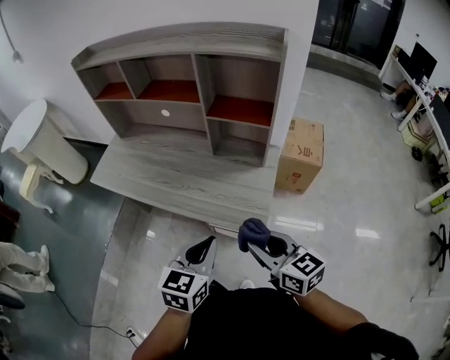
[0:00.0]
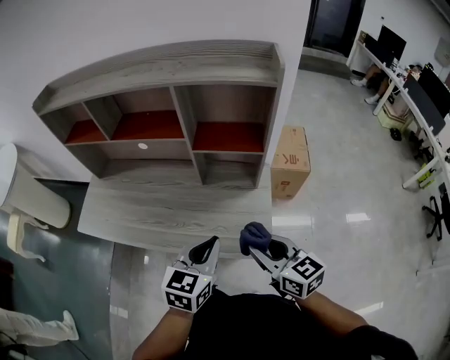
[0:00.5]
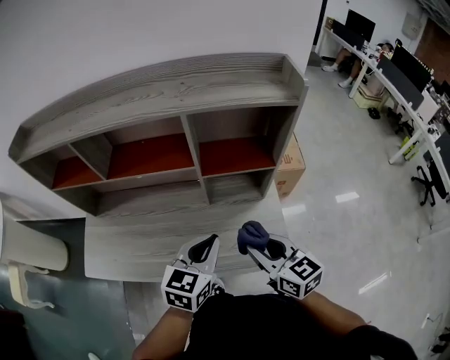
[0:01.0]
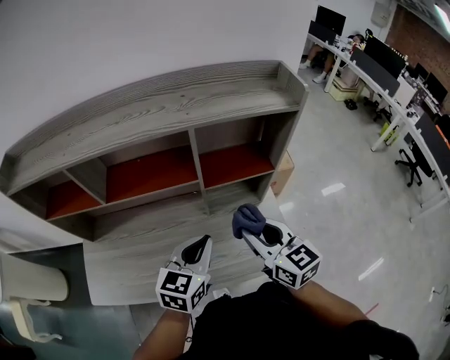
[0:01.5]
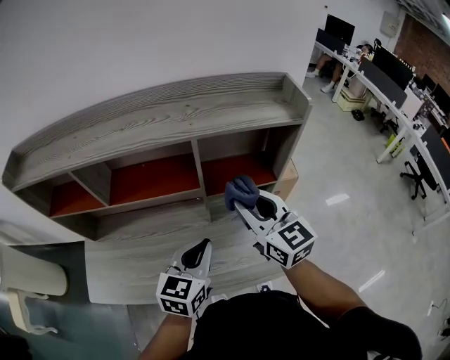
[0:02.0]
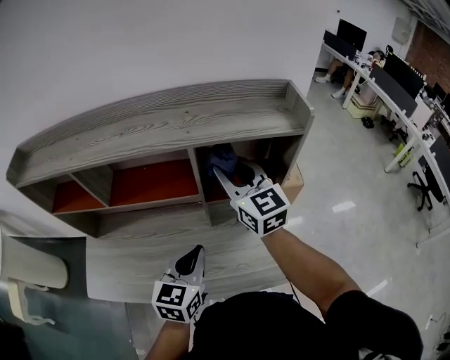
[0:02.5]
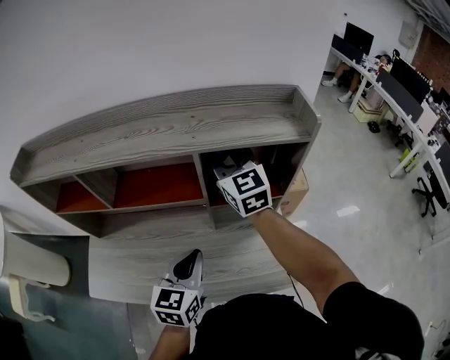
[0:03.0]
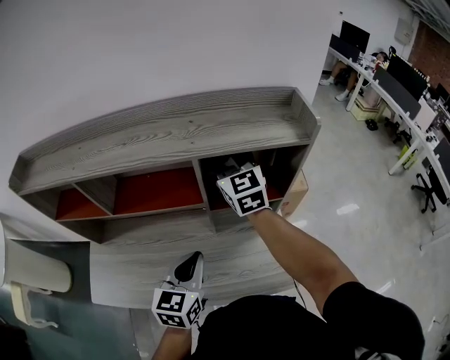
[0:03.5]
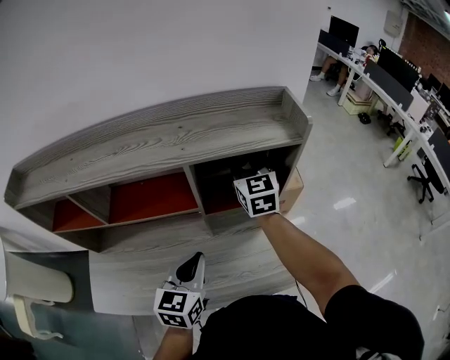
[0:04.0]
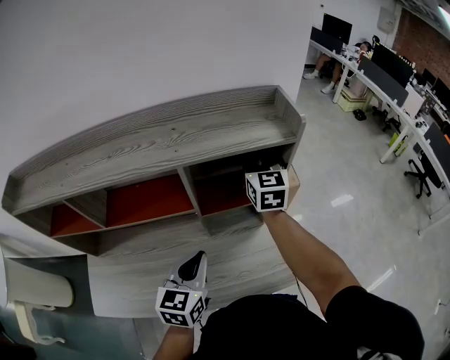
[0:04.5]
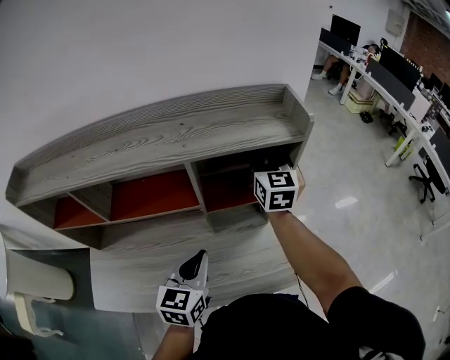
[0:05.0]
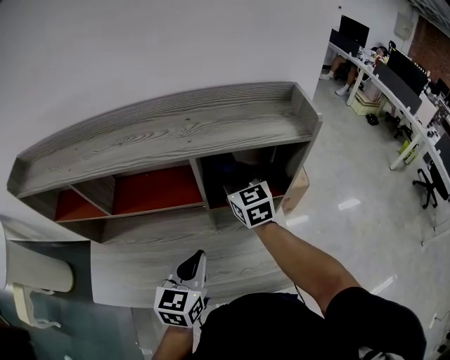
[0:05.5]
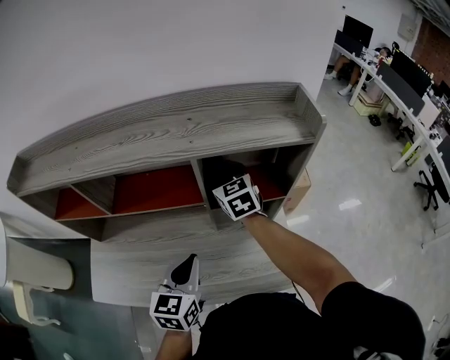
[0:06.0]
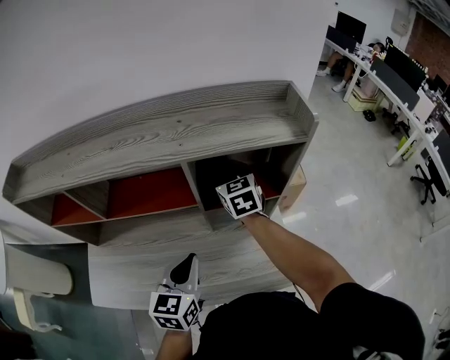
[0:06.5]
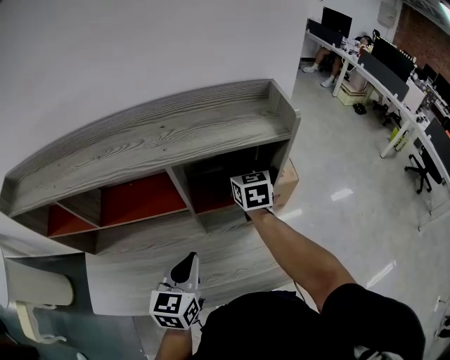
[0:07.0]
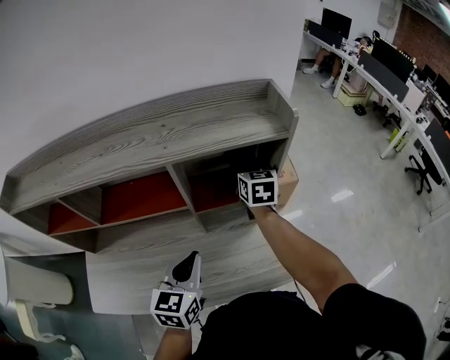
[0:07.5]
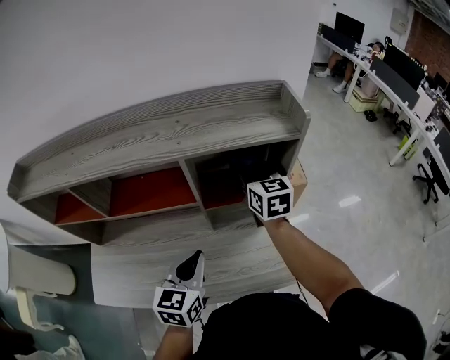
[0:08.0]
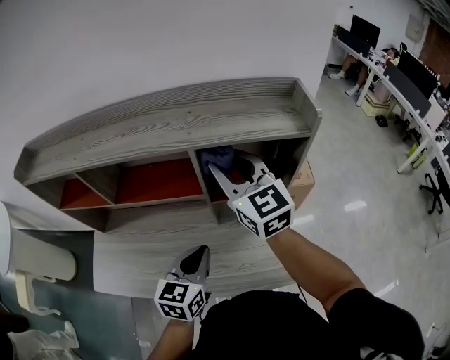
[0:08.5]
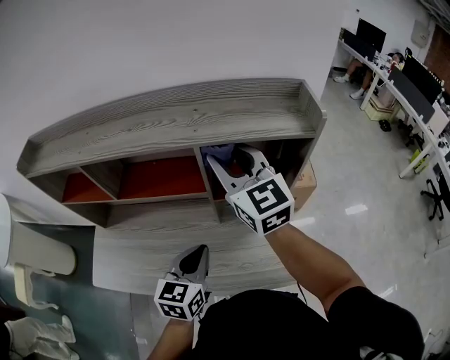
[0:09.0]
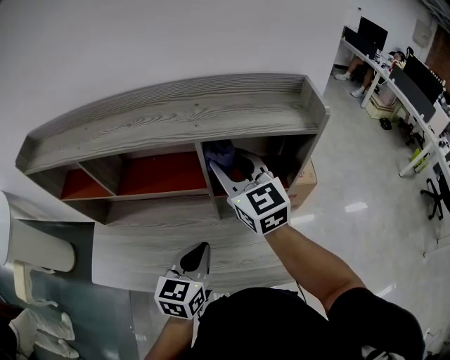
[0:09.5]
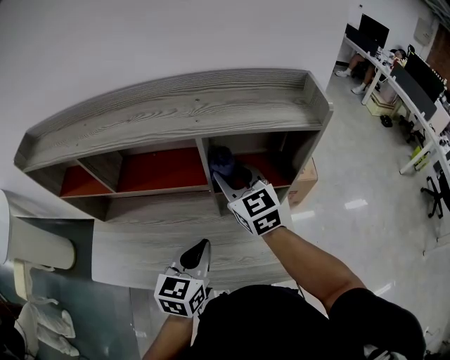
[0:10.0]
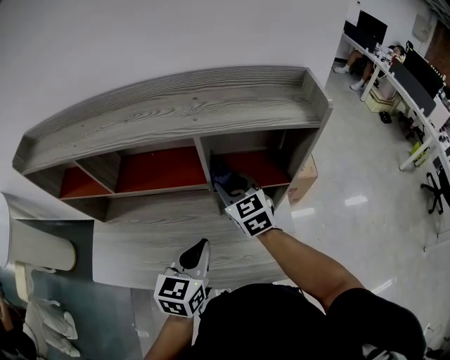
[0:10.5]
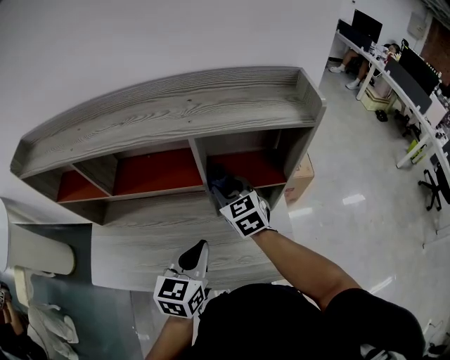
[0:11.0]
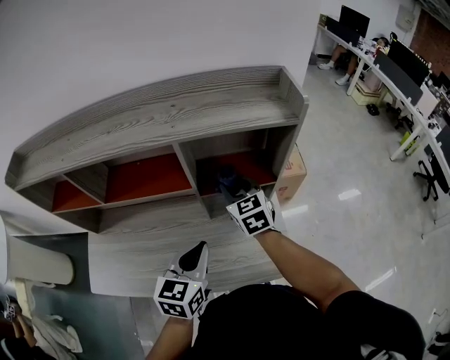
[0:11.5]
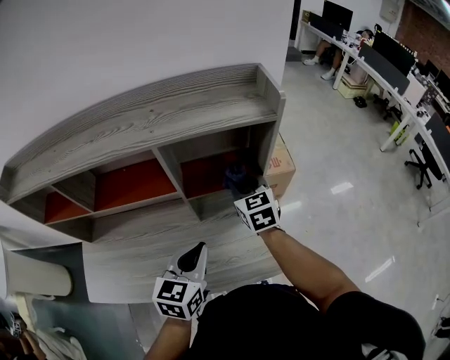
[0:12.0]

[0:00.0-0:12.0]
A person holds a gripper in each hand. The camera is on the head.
0:00.0 to 0:02.0: The left gripper ends up some 30 cm from where it was, and changes its angle by approximately 30 degrees; the right gripper changes place by approximately 35 cm, and changes its angle by about 40 degrees.
0:02.0 to 0:04.0: The right gripper moves forward, roughly 20 cm.
0:04.0 to 0:06.0: The right gripper shifts approximately 10 cm to the left and downward.
0:06.0 to 0:08.0: The right gripper shifts approximately 10 cm to the right.
0:08.0 to 0:10.0: The right gripper is displaced to the left and backward by some 10 cm, goes upward and returns, about 10 cm each way, and rotates approximately 20 degrees.
0:10.0 to 0:12.0: The left gripper goes roughly 5 cm to the right. The right gripper moves to the right and downward, roughly 15 cm, and turns by some 20 degrees.

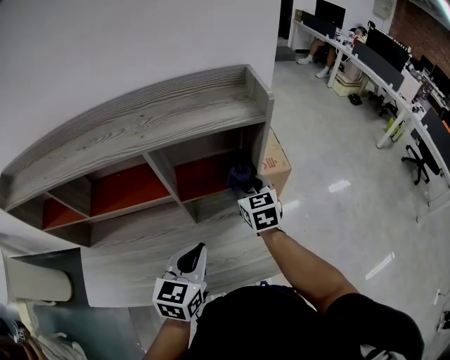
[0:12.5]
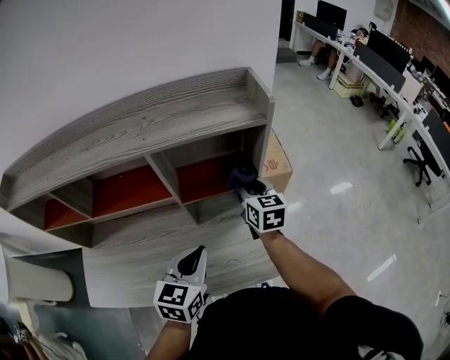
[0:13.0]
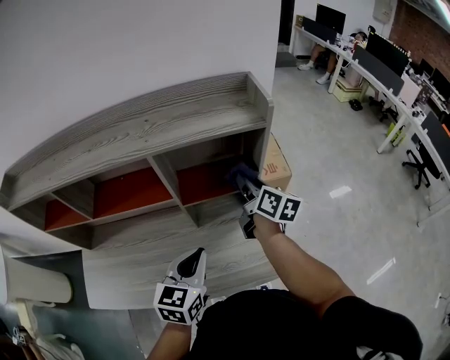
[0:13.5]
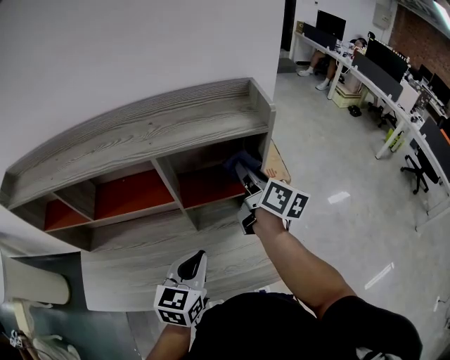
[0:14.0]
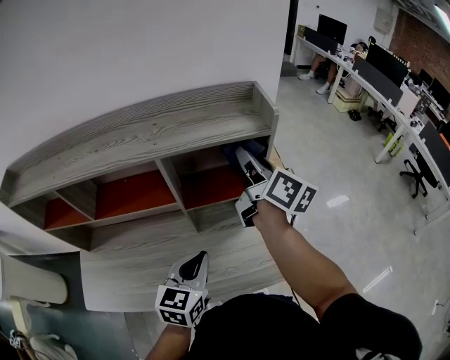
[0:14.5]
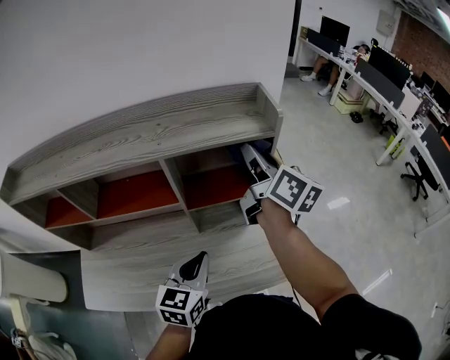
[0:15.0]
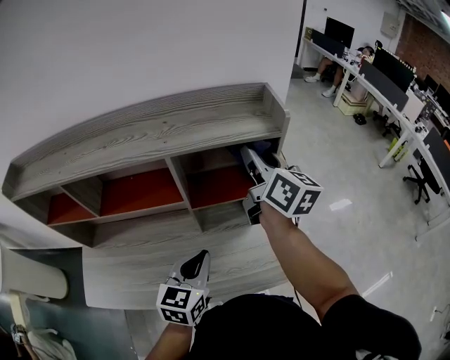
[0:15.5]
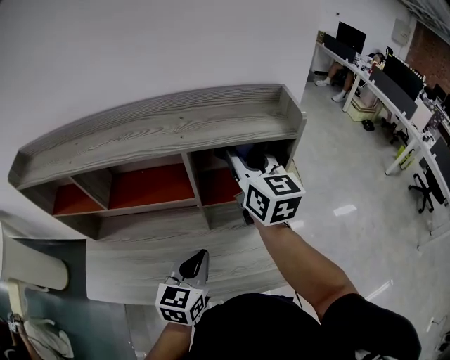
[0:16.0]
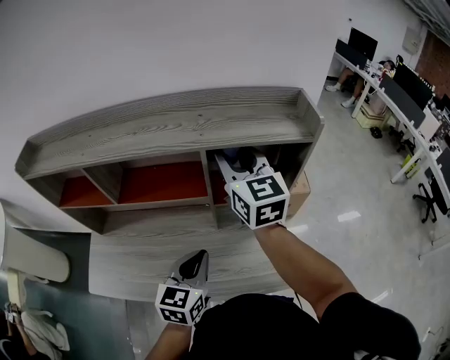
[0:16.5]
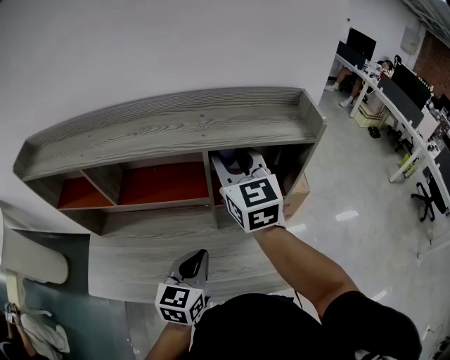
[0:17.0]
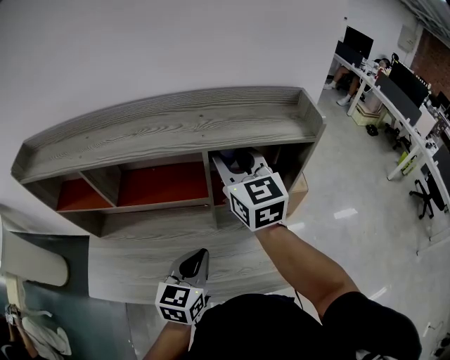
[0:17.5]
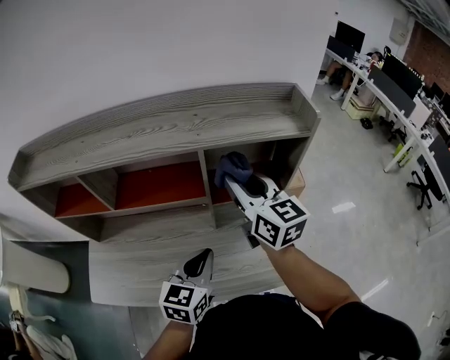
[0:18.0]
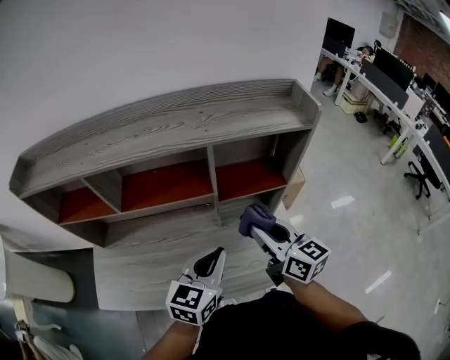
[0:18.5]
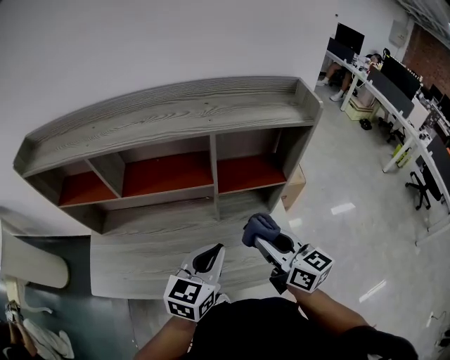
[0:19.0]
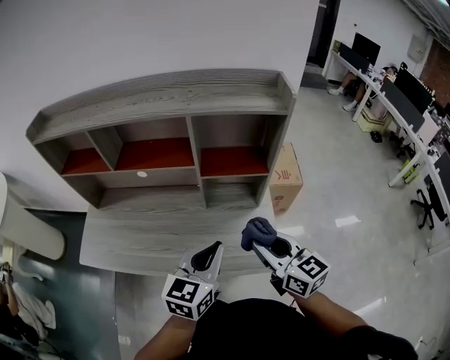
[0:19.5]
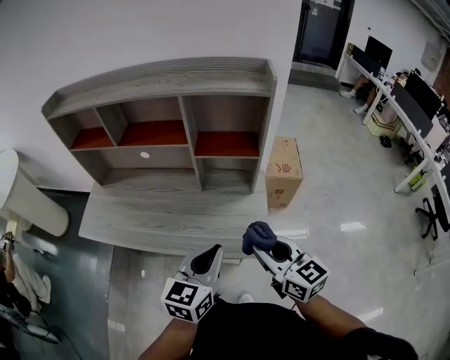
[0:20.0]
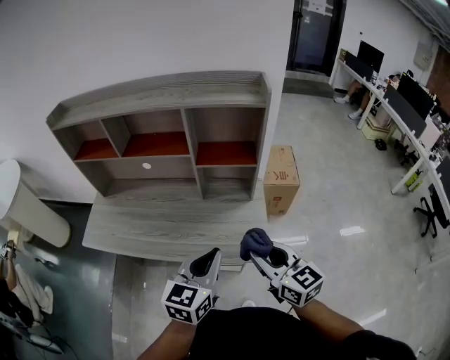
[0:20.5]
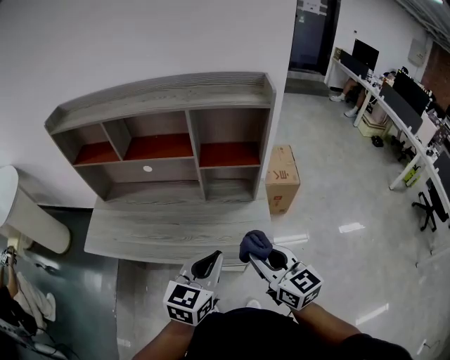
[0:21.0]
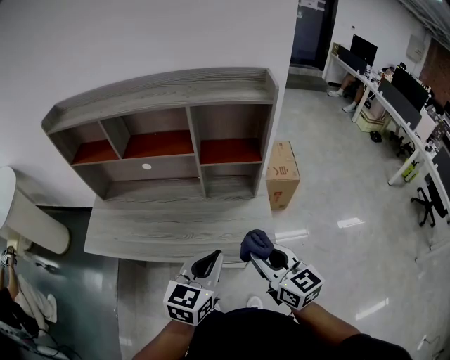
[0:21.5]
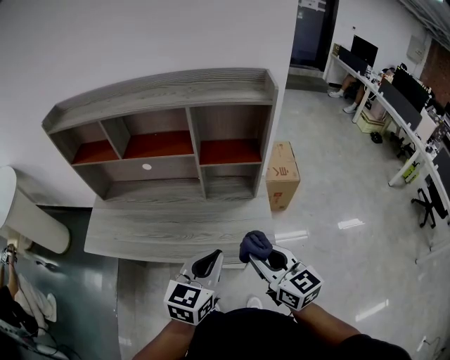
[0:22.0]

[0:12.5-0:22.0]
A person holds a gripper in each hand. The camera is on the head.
0:12.5 to 0:14.5: The right gripper goes about 20 cm upward, and rolls clockwise, seen from behind, by approximately 40 degrees.
0:14.5 to 0:16.5: The right gripper goes roughly 15 cm to the left, and twists about 40 degrees counterclockwise, seen from behind. Meanwhile the left gripper heads to the left, covering approximately 5 cm.
0:16.5 to 0:18.0: The right gripper ends up about 5 cm from where it was.
0:18.0 to 0:20.0: The two grippers go approximately 30 cm backward and to the right. The right gripper turns by some 20 degrees.
0:20.0 to 0:22.0: The right gripper shifts by some 5 cm.

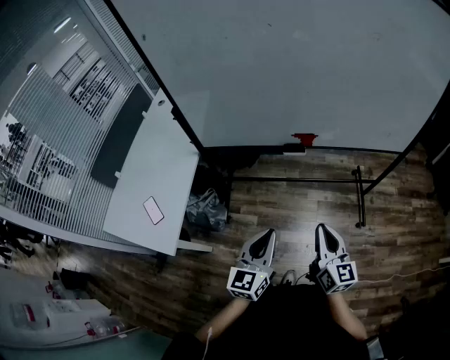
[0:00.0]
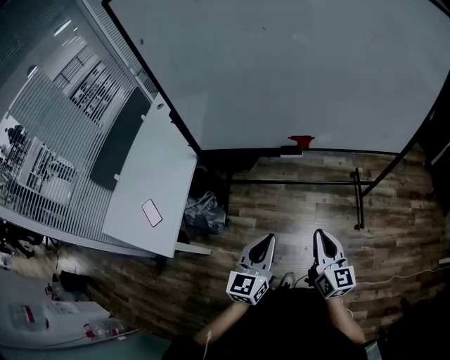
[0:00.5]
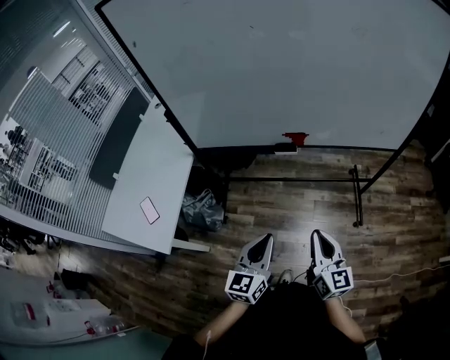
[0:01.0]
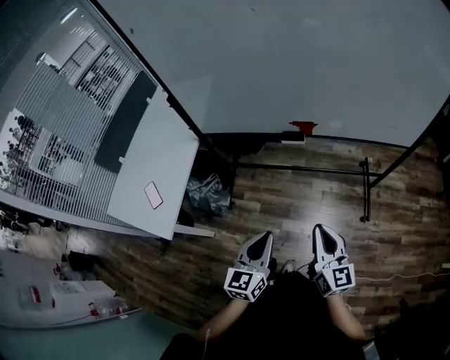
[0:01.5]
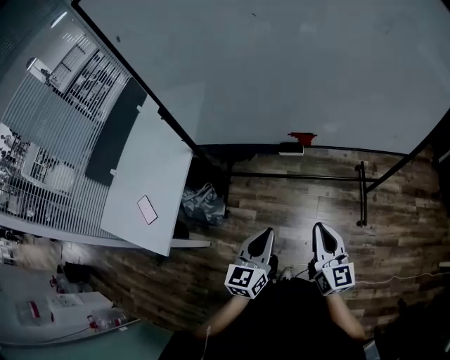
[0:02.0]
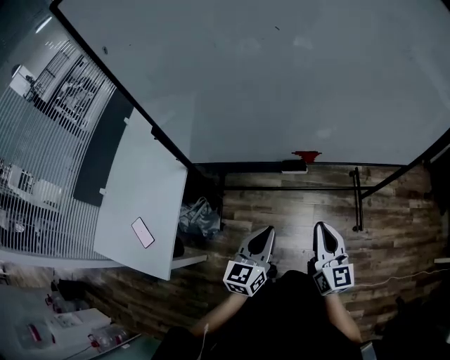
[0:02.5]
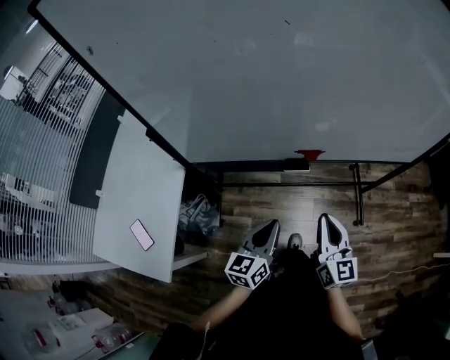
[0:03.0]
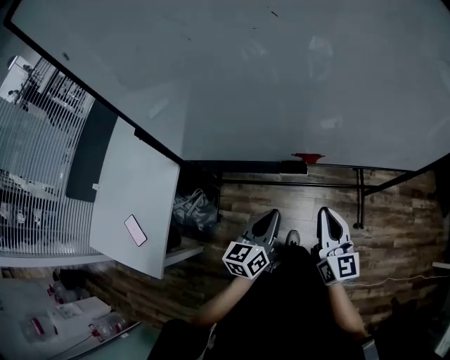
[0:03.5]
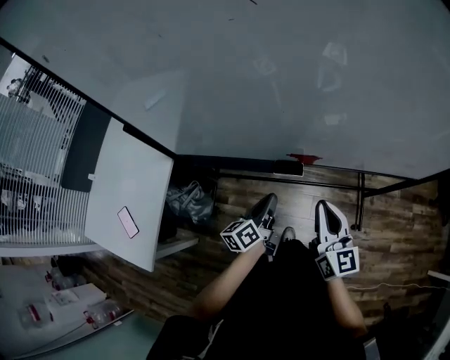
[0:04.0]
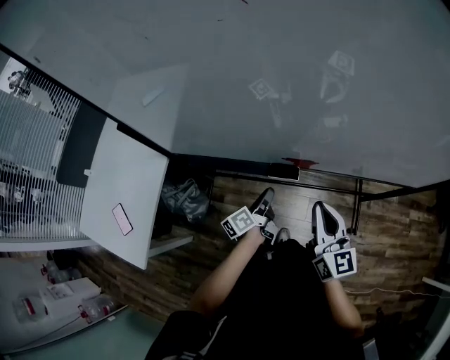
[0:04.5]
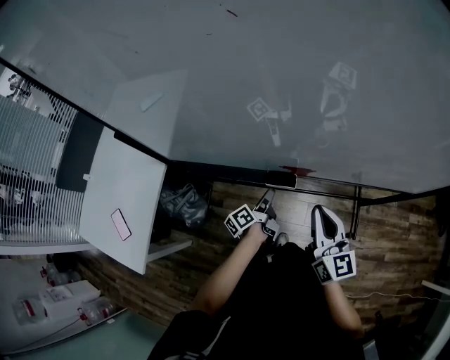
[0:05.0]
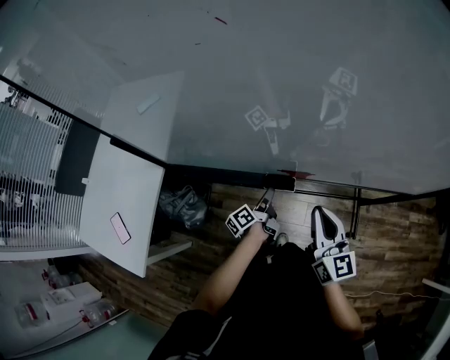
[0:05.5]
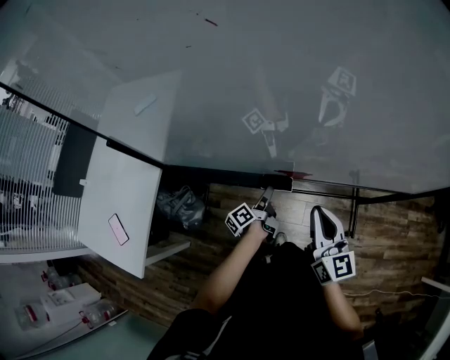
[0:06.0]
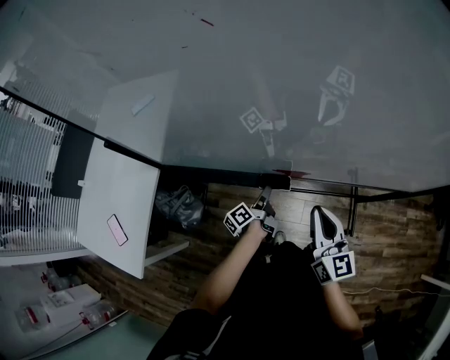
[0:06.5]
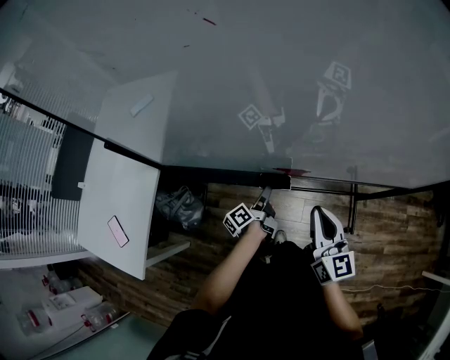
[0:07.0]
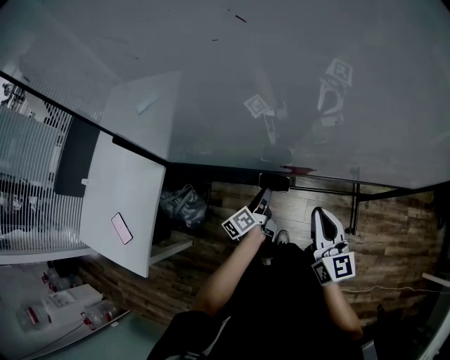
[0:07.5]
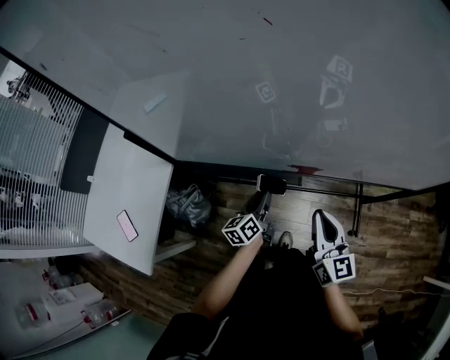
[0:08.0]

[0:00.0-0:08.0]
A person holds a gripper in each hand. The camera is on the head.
0:00.0 to 0:02.0: The left gripper changes place by about 5 cm.
0:02.0 to 0:04.0: The right gripper heads forward, covering approximately 20 cm. The left gripper travels forward and downward by about 25 cm, and rolls counterclockwise, seen from behind, by some 40 degrees.
0:04.0 to 0:06.0: The right gripper ends up roughly 5 cm from where it was, while the left gripper heads downward and forward, covering roughly 15 cm, changes its angle by roughly 30 degrees, and opens.
0:06.0 to 0:08.0: The left gripper is displaced upward and to the left by some 10 cm, and swivels some 40 degrees.
